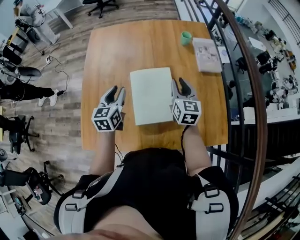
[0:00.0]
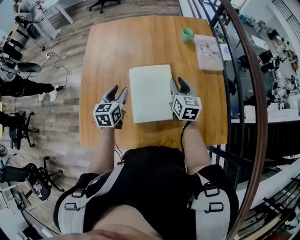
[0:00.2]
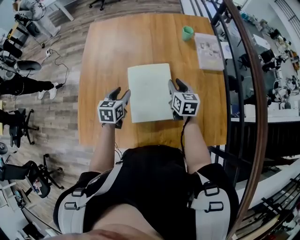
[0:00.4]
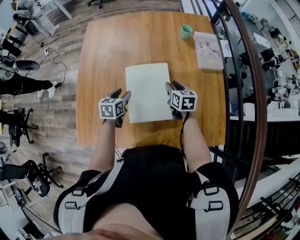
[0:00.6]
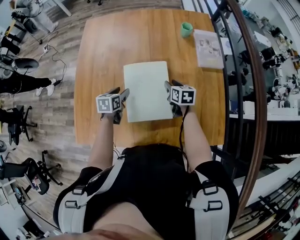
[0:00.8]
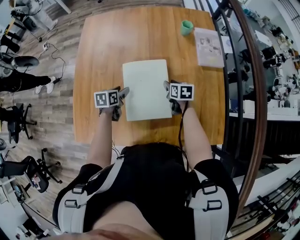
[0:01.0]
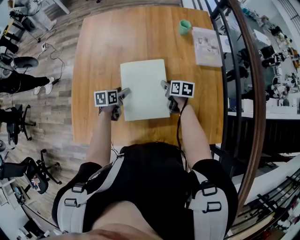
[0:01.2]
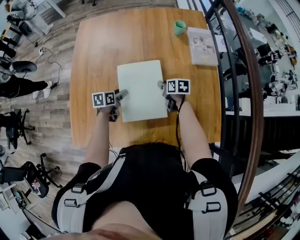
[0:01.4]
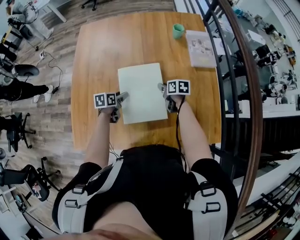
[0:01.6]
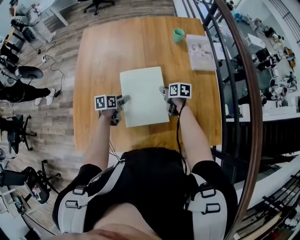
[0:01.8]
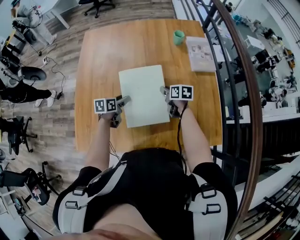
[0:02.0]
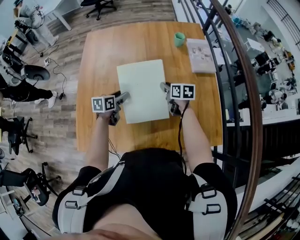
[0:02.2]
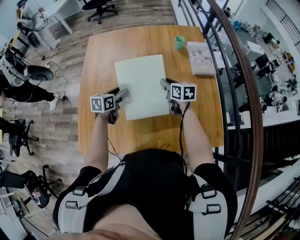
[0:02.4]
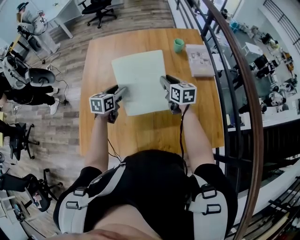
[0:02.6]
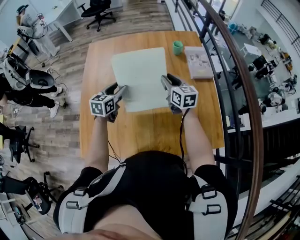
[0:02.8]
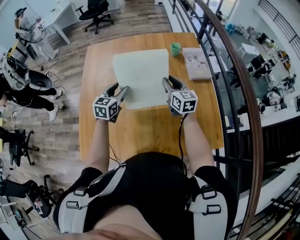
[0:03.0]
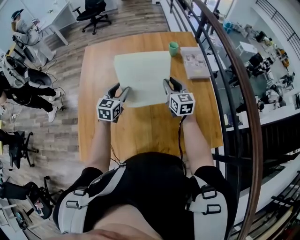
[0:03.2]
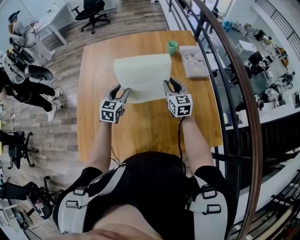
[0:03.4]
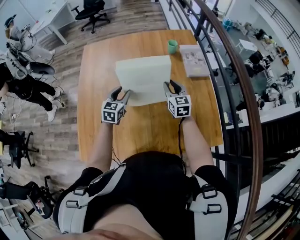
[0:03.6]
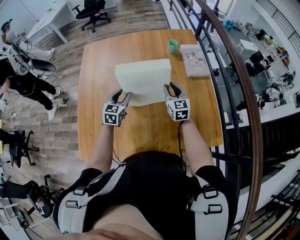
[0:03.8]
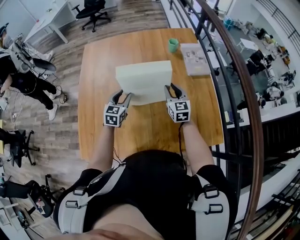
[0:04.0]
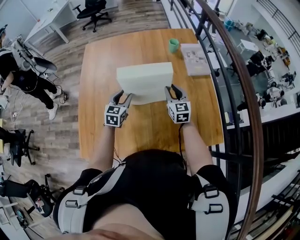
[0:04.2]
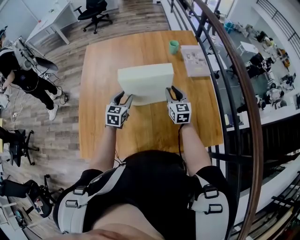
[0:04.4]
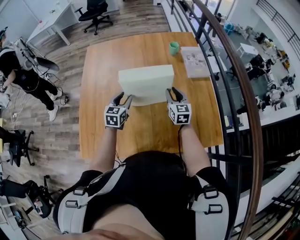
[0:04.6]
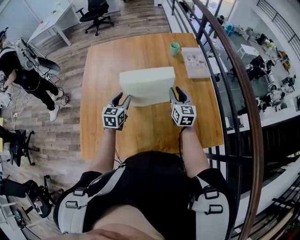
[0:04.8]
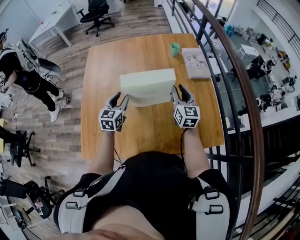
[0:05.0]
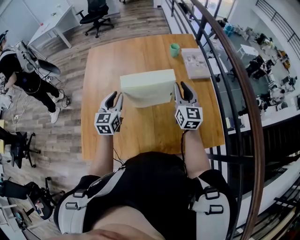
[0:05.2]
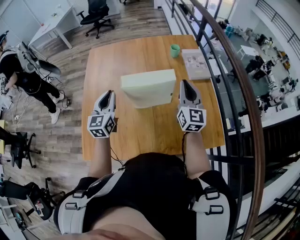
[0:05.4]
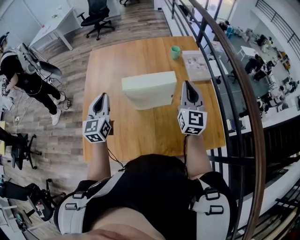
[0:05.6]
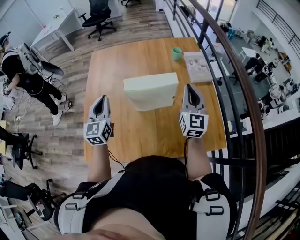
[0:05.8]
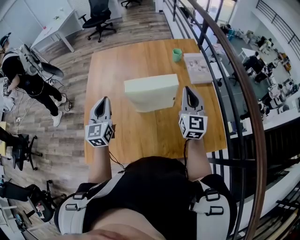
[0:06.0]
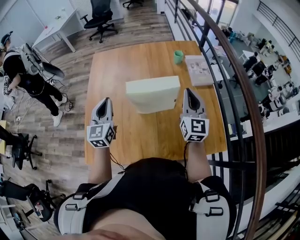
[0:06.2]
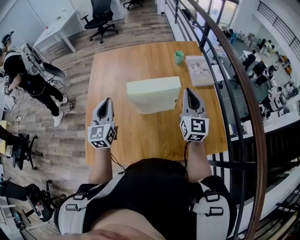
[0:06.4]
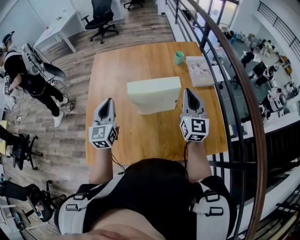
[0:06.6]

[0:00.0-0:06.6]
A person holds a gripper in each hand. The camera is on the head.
0:00.0 to 0:01.6: Both grippers travel together downward, roughly 20 cm. The right gripper rotates roughly 50 degrees; the left gripper rotates about 40 degrees, and opens up.
0:01.6 to 0:03.2: The grippers both shift upward by about 20 cm. The right gripper angles its fingers upward, by approximately 30 degrees. The left gripper swivels approximately 50 degrees.
0:03.2 to 0:05.0: The grippers both shift backward by approximately 5 cm.
0:05.0 to 0:06.6: The left gripper moves upward and to the left, approximately 15 cm, and closes. Meanwhile the right gripper moves upward, about 10 cm, and closes.

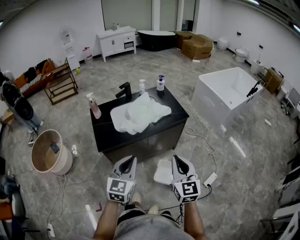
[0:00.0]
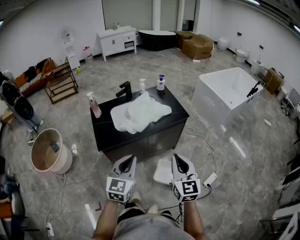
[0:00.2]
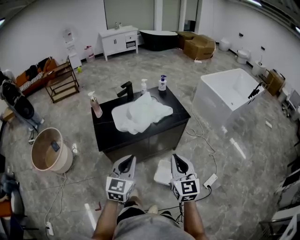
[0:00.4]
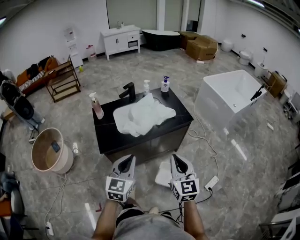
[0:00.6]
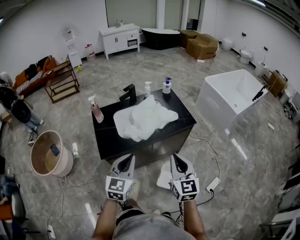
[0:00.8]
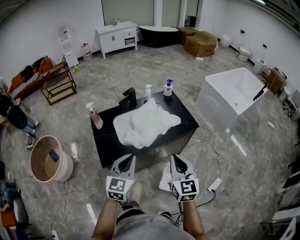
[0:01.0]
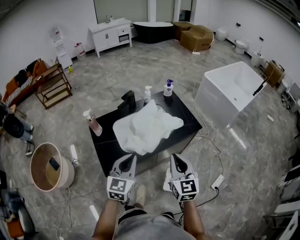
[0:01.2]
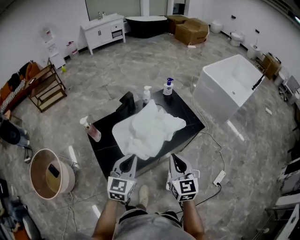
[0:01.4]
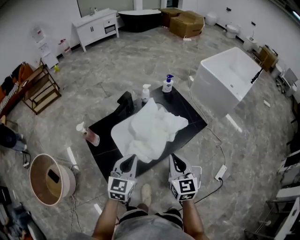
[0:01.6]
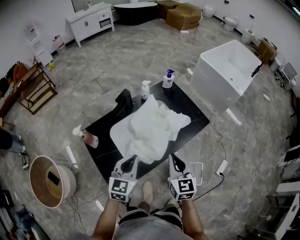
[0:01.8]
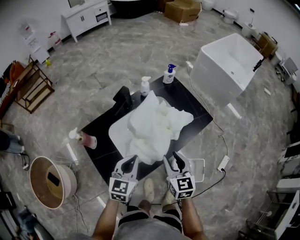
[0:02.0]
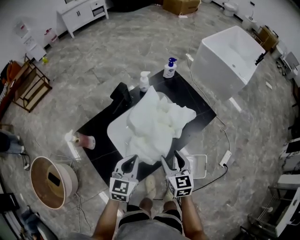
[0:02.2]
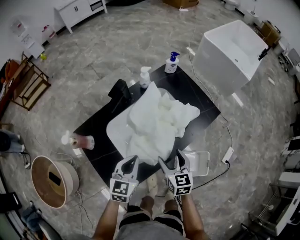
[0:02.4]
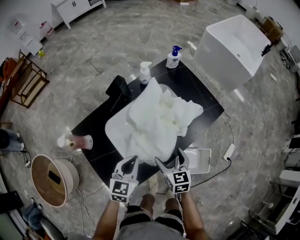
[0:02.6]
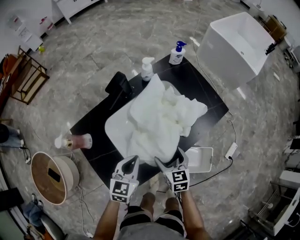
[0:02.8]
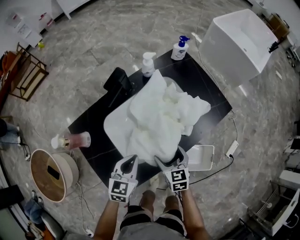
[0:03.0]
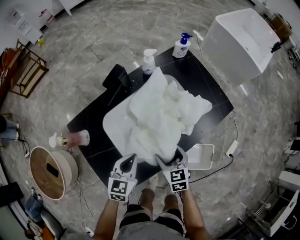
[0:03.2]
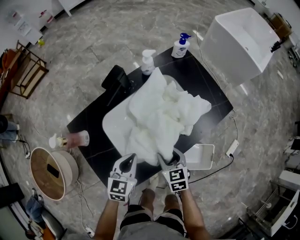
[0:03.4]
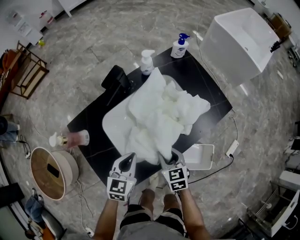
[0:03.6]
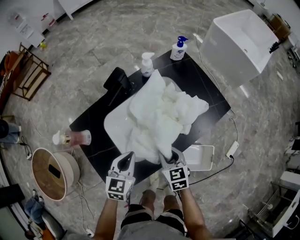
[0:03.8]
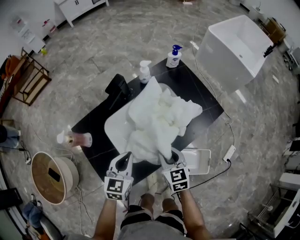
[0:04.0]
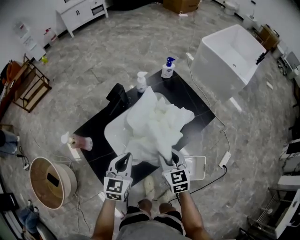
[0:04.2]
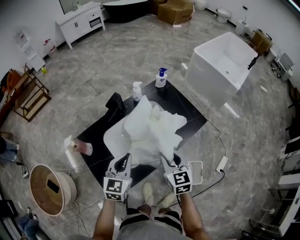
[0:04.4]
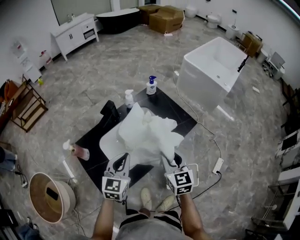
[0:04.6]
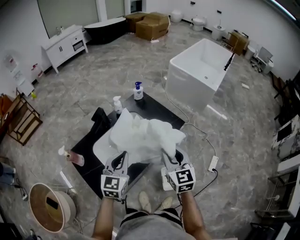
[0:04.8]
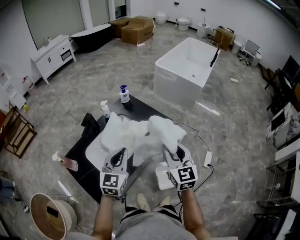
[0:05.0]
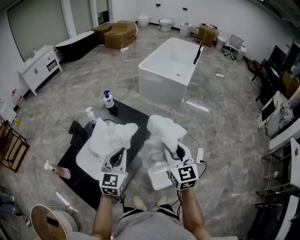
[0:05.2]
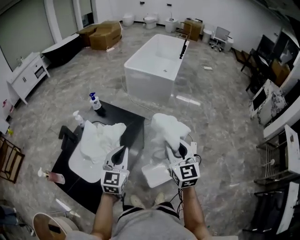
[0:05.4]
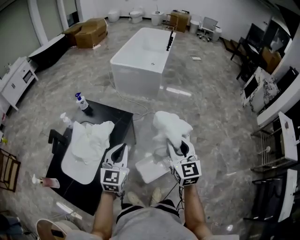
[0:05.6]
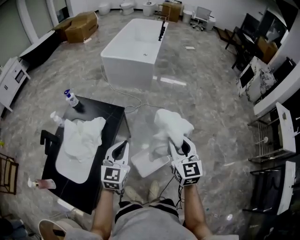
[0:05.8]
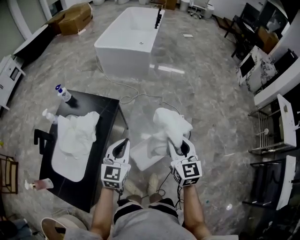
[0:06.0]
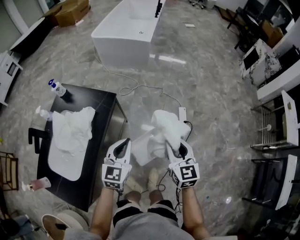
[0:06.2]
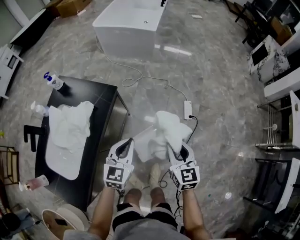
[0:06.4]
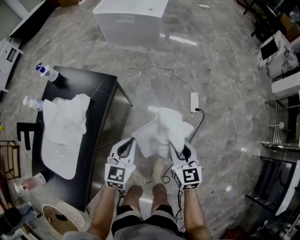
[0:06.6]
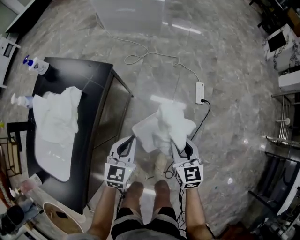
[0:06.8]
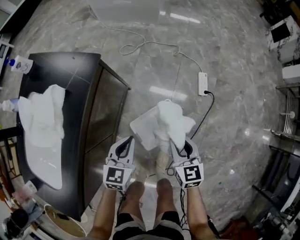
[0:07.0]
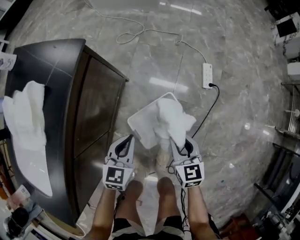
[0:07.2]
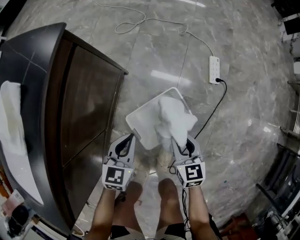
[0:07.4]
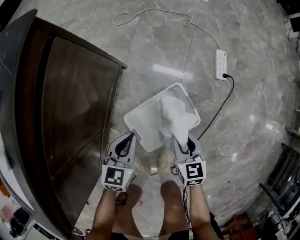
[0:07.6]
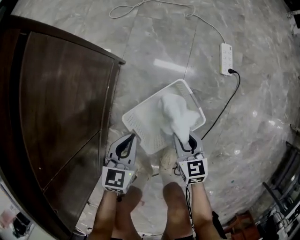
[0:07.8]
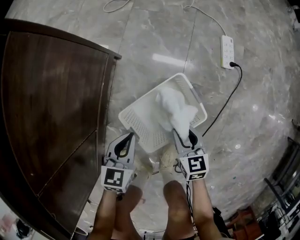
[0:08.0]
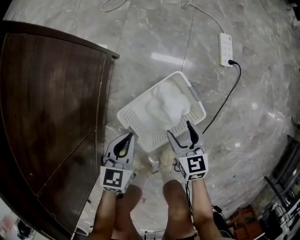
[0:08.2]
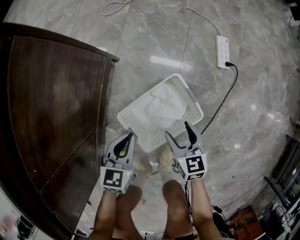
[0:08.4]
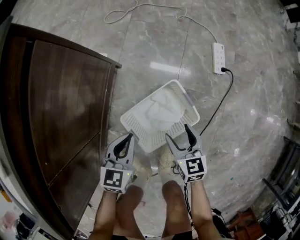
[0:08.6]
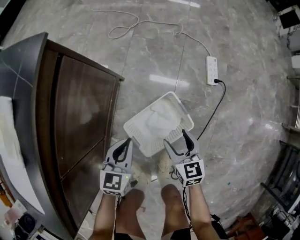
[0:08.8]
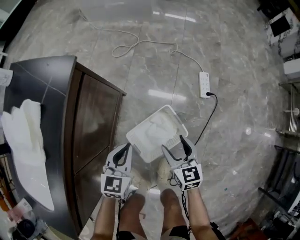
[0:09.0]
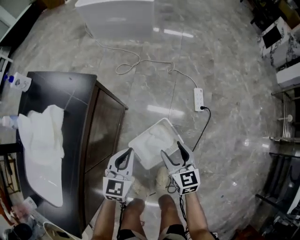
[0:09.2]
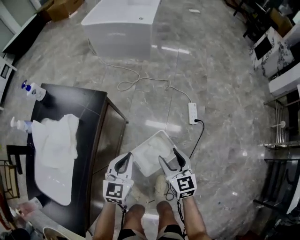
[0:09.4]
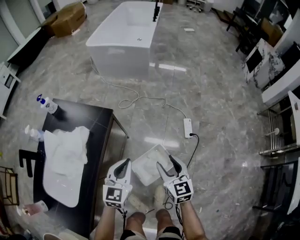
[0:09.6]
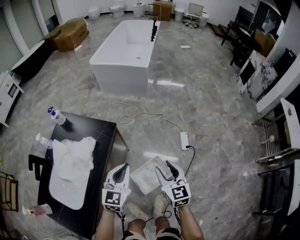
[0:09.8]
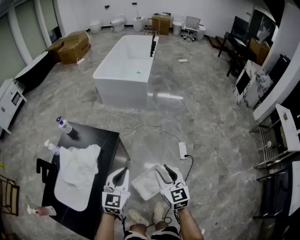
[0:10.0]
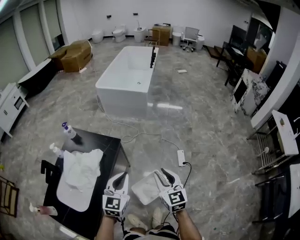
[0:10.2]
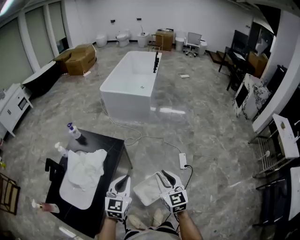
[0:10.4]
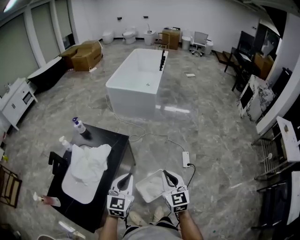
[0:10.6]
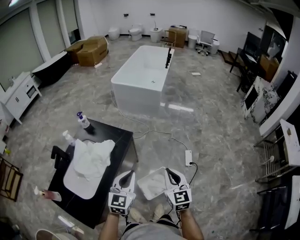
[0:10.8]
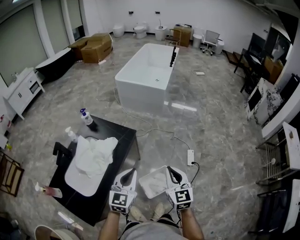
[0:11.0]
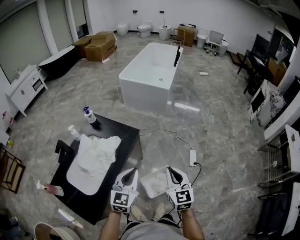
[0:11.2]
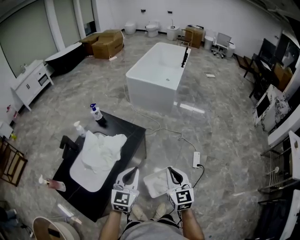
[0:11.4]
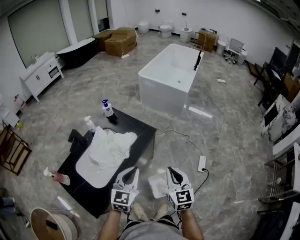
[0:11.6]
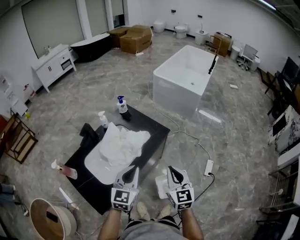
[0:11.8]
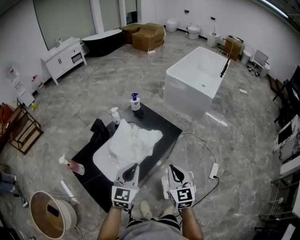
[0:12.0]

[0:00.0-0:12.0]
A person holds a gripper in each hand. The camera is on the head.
0:00.0 to 0:01.6: The two grippers go about 35 cm forward and to the left.
0:01.6 to 0:03.0: Both grippers travel together downward, roughly 25 cm. The right gripper rotates about 30 degrees, and opens its fingers.
0:03.0 to 0:04.4: The two grippers go roughly 15 cm upward. The right gripper closes.
0:04.4 to 0:06.0: Both grippers are carried approximately 40 cm. The right gripper swivels some 40 degrees. Meanwhile the left gripper turns by roughly 40 degrees.
0:06.0 to 0:07.6: The grippers both shift downward by roughly 60 cm. The right gripper turns by approximately 30 degrees, while the left gripper rotates about 30 degrees.
0:07.6 to 0:09.0: The grippers both shift upward by some 15 cm. The right gripper opens its fingers.
0:09.0 to 0:10.4: The two grippers go some 50 cm upward. The left gripper swivels roughly 20 degrees; the right gripper turns by approximately 20 degrees, and closes.
0:10.4 to 0:12.0: The grippers both shift to the left by some 25 cm. The left gripper changes its angle by approximately 20 degrees. The right gripper swivels some 20 degrees.

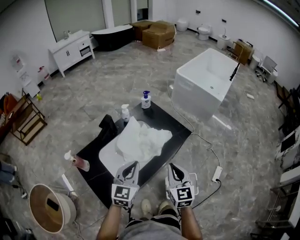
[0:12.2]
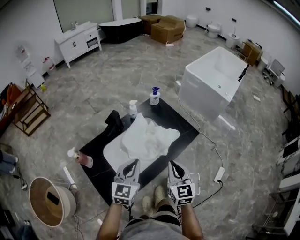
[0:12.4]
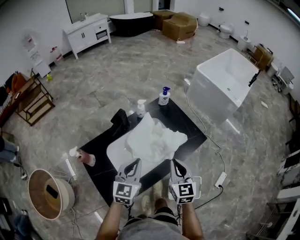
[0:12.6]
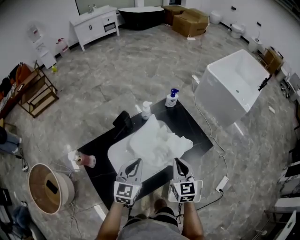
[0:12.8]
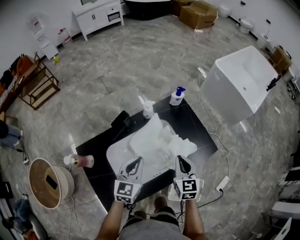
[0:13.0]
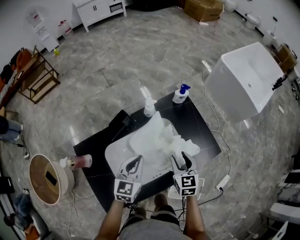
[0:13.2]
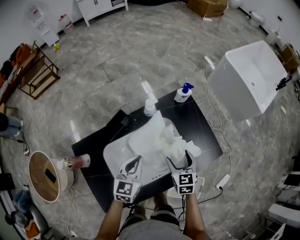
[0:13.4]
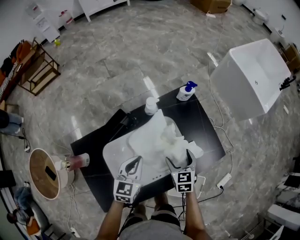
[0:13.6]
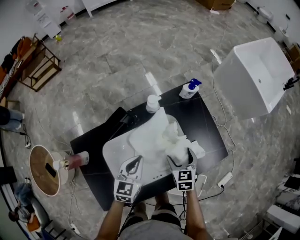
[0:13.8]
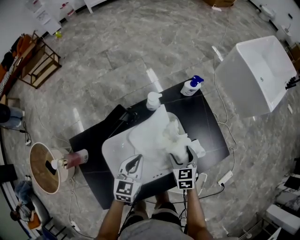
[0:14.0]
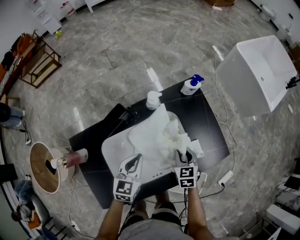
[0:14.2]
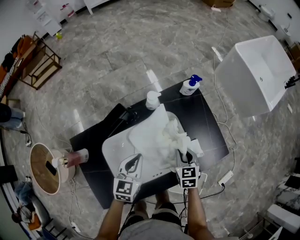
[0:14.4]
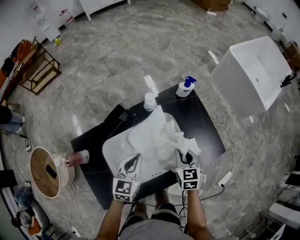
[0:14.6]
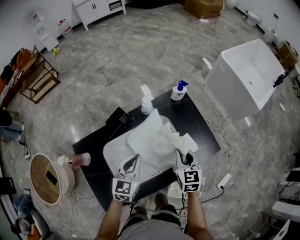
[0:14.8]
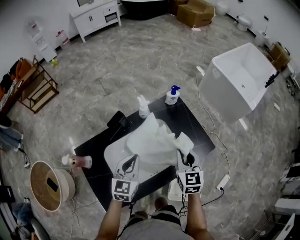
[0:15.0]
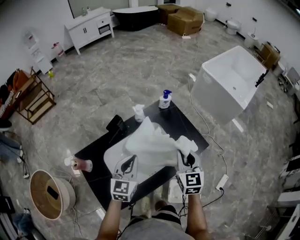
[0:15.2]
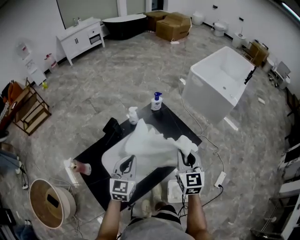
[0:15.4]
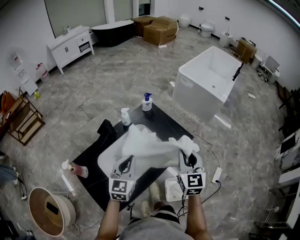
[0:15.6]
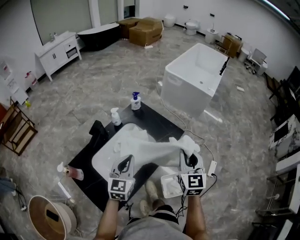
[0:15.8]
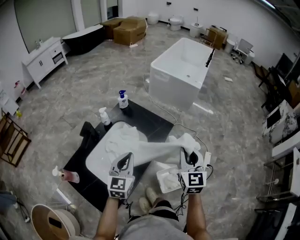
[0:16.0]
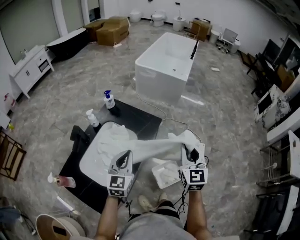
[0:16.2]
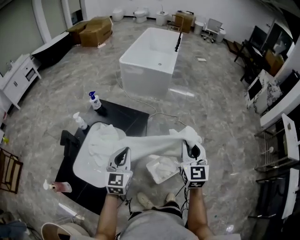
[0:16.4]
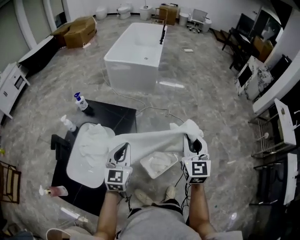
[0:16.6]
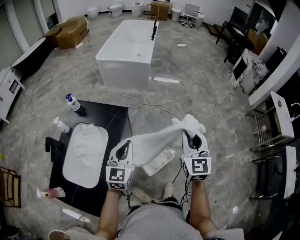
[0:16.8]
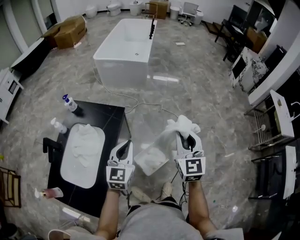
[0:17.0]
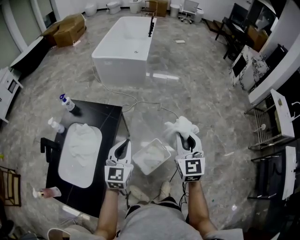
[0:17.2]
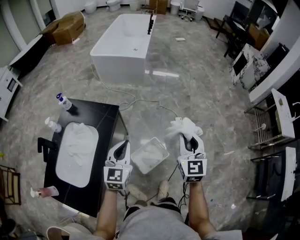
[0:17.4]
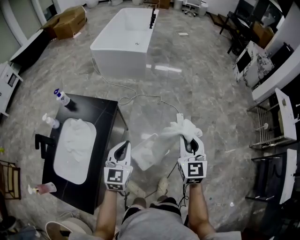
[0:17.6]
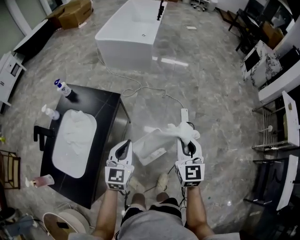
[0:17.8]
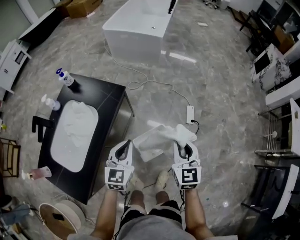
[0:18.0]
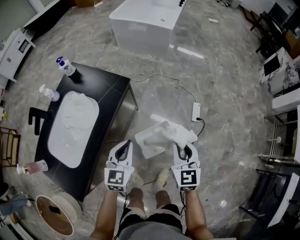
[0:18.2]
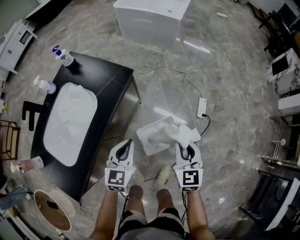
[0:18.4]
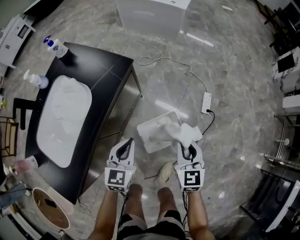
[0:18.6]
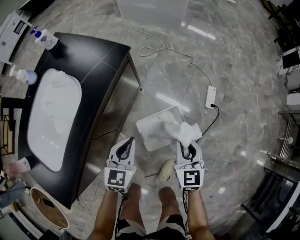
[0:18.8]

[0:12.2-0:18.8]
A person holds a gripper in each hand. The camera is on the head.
0:12.2 to 0:13.8: The left gripper shifts some 25 cm forward and downward, and swivels some 30 degrees, while the right gripper heads downward and forward, covering roughly 35 cm, turns by about 30 degrees, and opens its fingers.
0:13.8 to 0:15.4: The right gripper is displaced upward by roughly 30 cm, swivels roughly 30 degrees, and closes up. The left gripper moves upward and backward, approximately 20 cm.
0:15.4 to 0:17.2: The right gripper changes place by approximately 40 cm, and changes its angle by approximately 40 degrees; the left gripper shifts by roughly 35 cm, and changes its angle by about 40 degrees.
0:17.2 to 0:18.8: The two grippers go approximately 40 cm downward. The left gripper changes its angle by some 20 degrees; the right gripper rotates some 30 degrees.
